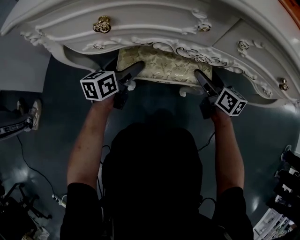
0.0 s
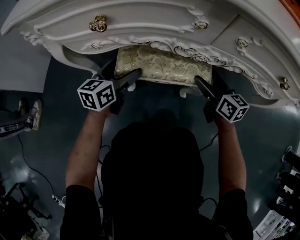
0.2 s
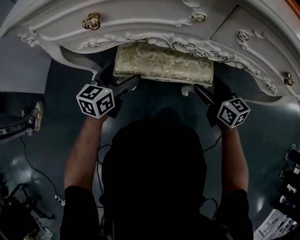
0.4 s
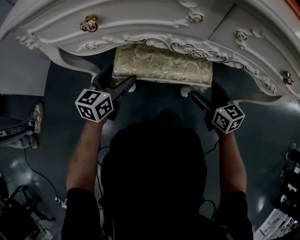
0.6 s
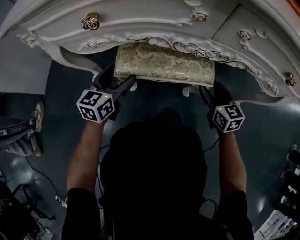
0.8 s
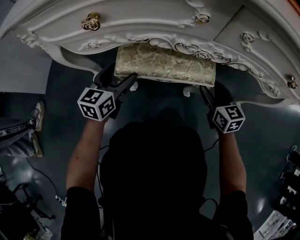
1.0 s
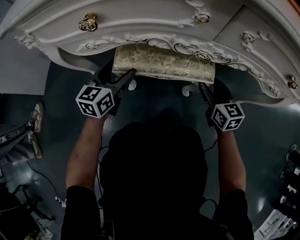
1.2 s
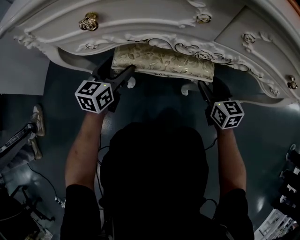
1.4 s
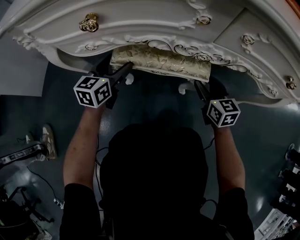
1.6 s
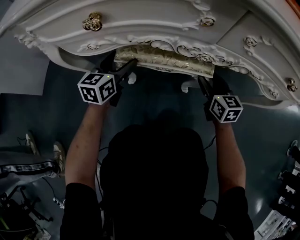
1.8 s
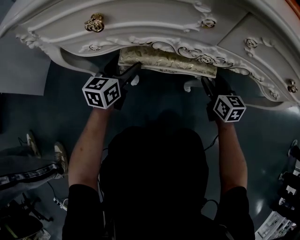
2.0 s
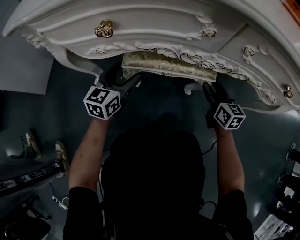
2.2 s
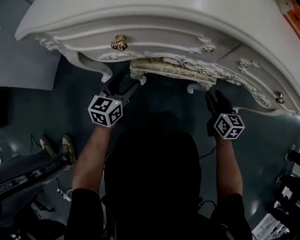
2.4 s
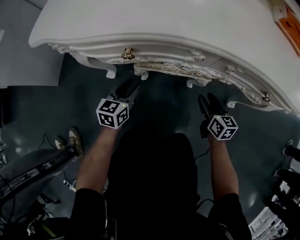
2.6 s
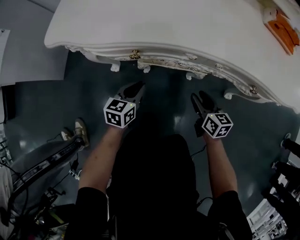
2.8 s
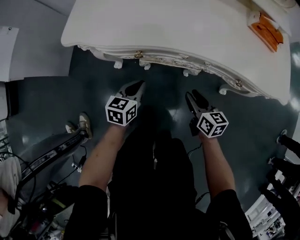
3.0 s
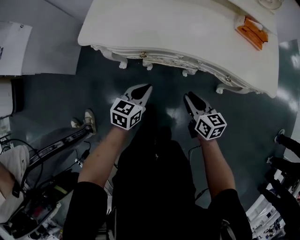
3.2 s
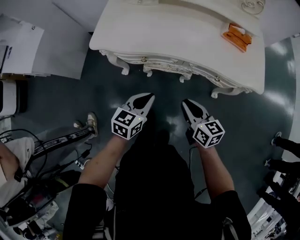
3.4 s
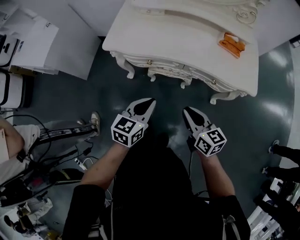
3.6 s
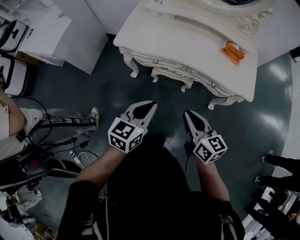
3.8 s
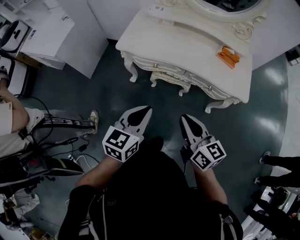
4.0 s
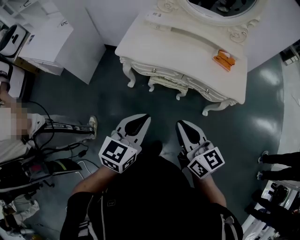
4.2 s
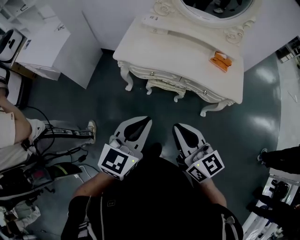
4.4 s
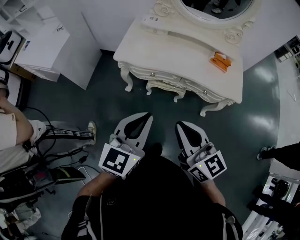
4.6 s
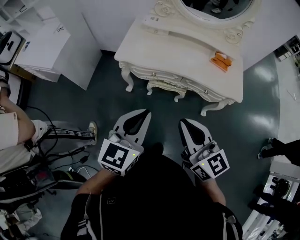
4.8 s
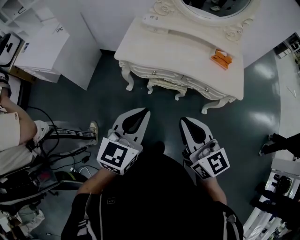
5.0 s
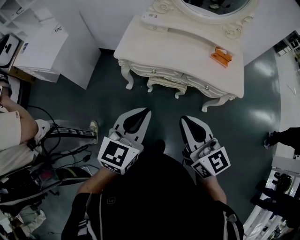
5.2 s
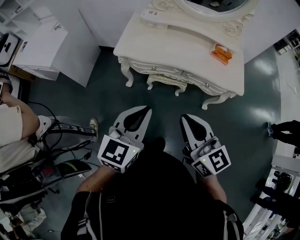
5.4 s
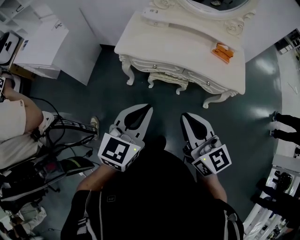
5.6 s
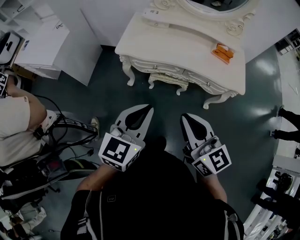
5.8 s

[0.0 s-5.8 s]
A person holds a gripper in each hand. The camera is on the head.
0.0 to 1.4 s: The left gripper changes its angle by approximately 20 degrees. The right gripper rotates roughly 30 degrees, and closes up.
1.4 to 2.8 s: The left gripper is displaced backward and upward by roughly 15 cm, and closes; the right gripper moves upward and backward, approximately 15 cm, and turns by roughly 20 degrees.
2.8 to 4.4 s: The two grippers go approximately 70 cm upward and backward. The left gripper swivels some 30 degrees. The right gripper rotates some 30 degrees, and closes up.
4.4 to 5.8 s: There are only small adjustments of the grippers.

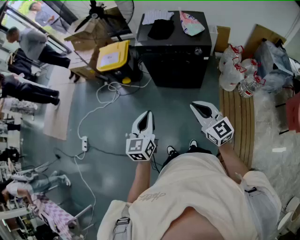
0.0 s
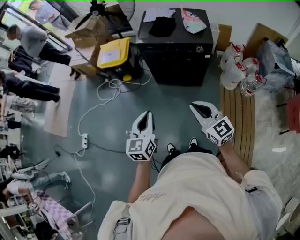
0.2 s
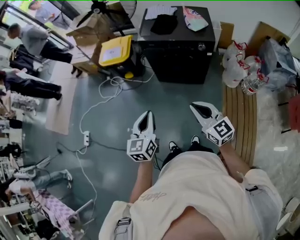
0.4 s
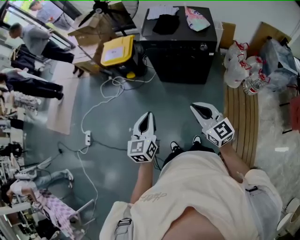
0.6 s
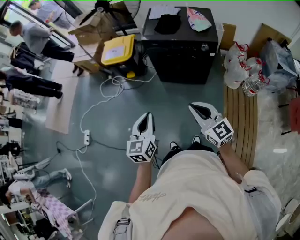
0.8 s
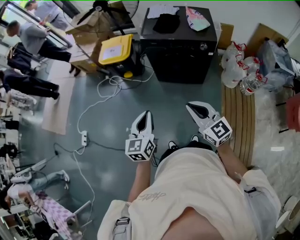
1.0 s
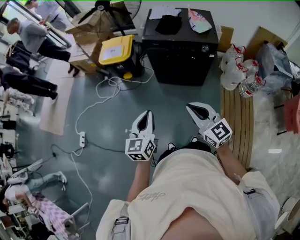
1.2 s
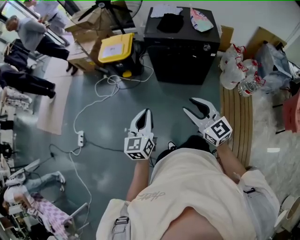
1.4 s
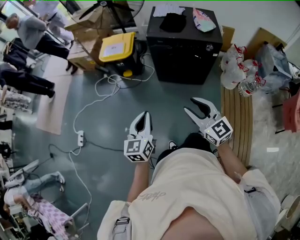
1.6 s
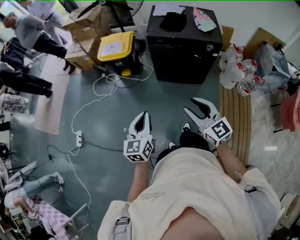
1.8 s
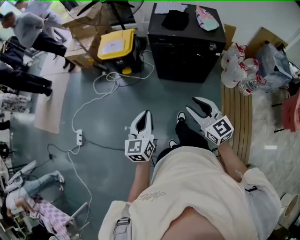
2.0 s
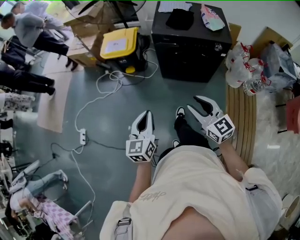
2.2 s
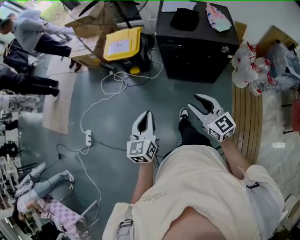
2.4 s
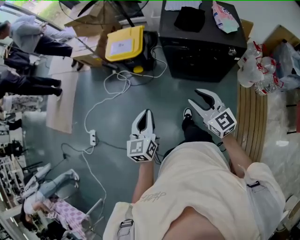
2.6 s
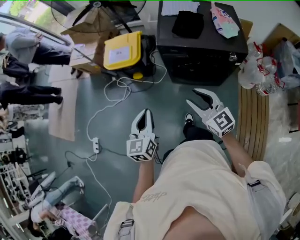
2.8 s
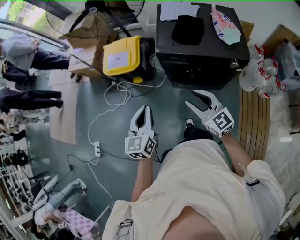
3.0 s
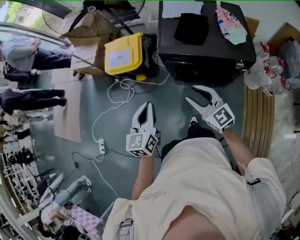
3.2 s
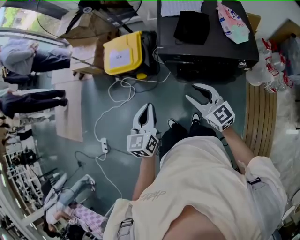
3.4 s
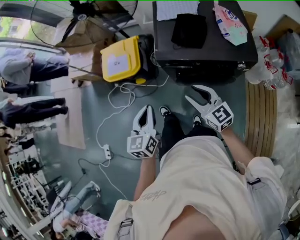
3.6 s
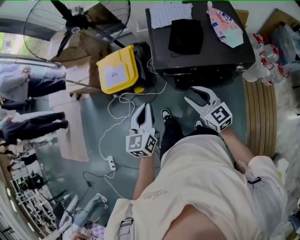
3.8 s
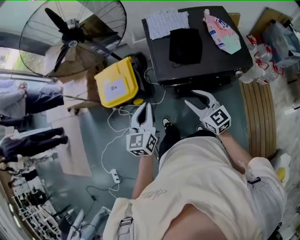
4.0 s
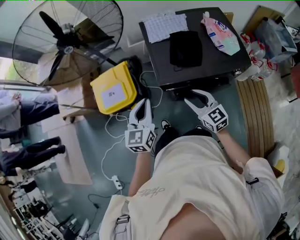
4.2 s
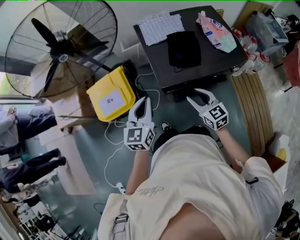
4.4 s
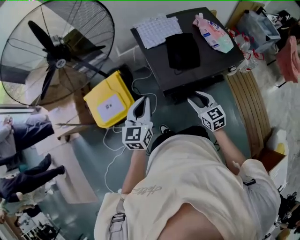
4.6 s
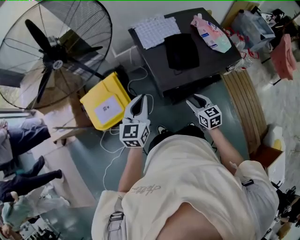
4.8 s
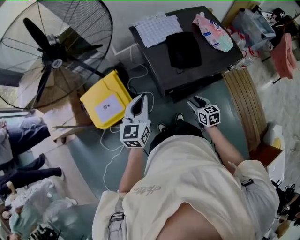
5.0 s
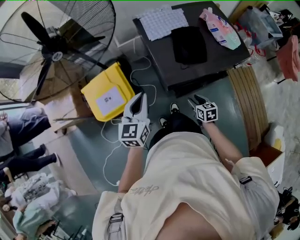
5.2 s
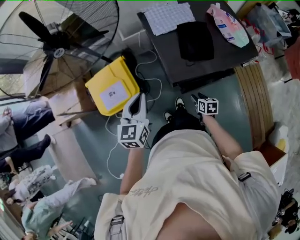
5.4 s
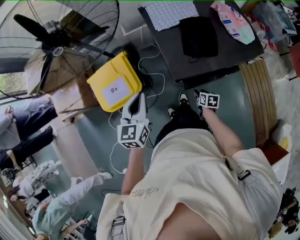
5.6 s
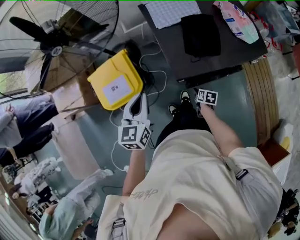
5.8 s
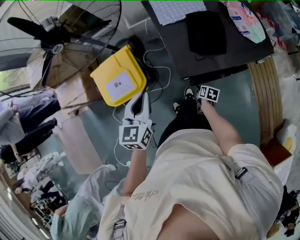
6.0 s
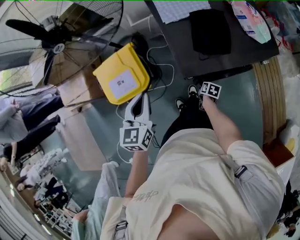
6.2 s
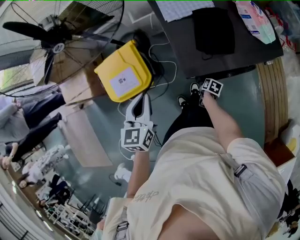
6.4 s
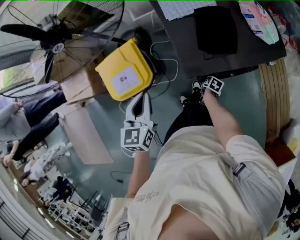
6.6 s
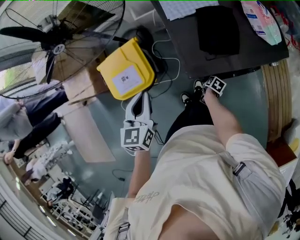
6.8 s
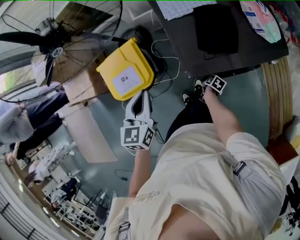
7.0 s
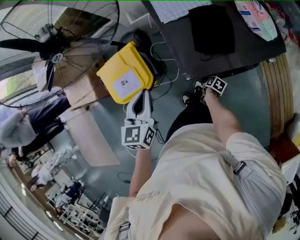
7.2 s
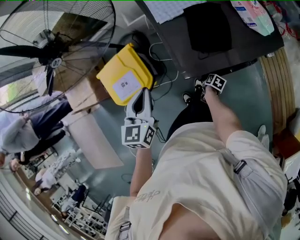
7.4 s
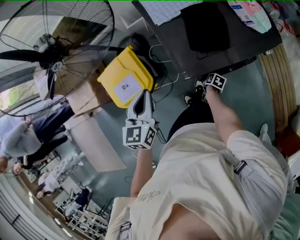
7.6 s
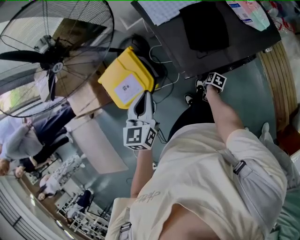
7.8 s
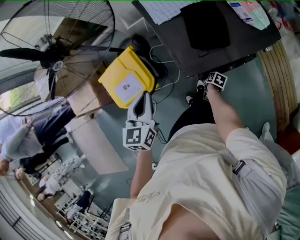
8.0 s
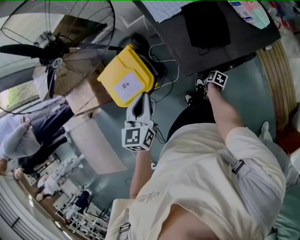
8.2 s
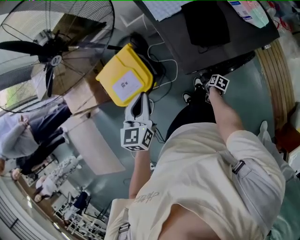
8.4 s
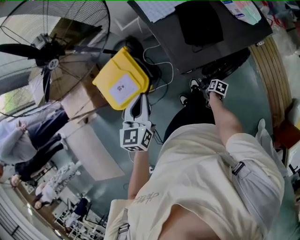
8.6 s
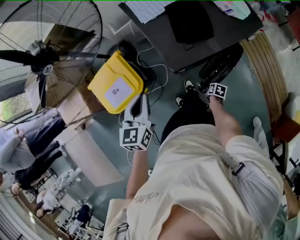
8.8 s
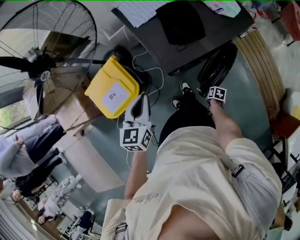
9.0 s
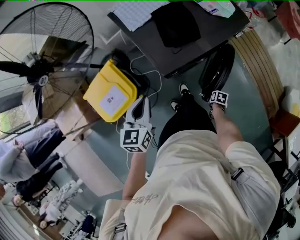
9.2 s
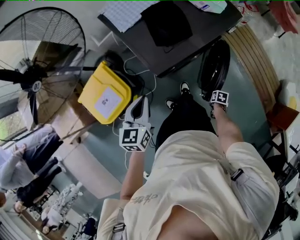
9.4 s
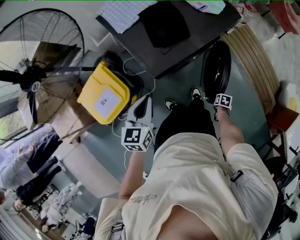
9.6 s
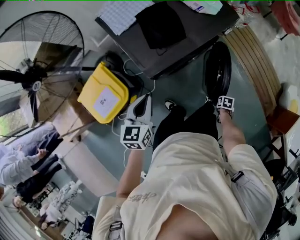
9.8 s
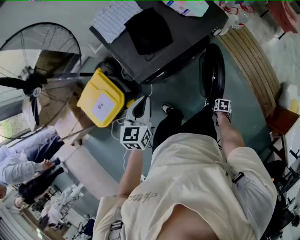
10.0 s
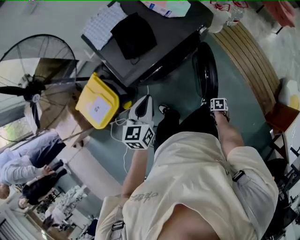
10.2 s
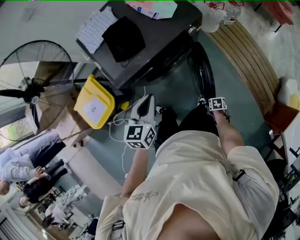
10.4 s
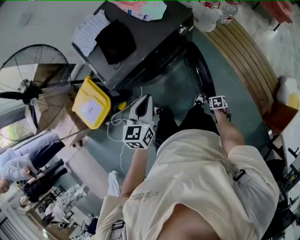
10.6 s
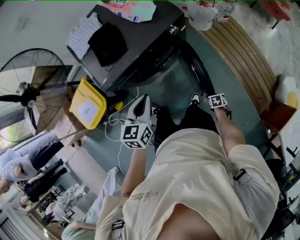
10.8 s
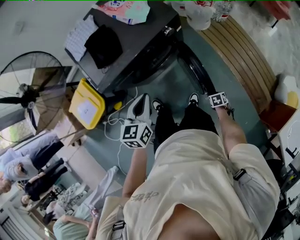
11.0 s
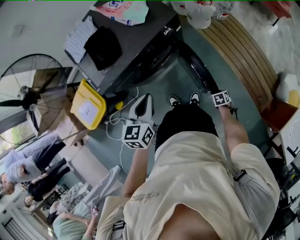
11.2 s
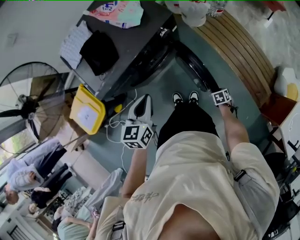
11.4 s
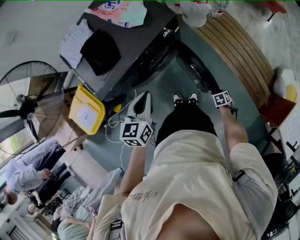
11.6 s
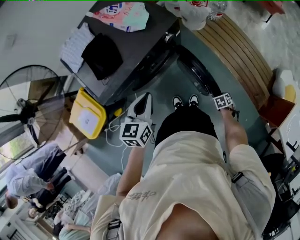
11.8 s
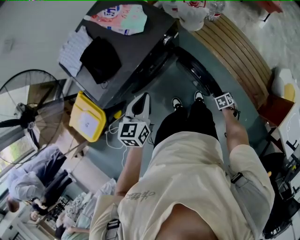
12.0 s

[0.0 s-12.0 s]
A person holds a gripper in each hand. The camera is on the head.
0.0 to 1.6 s: Both grippers move to the left, about 10 cm. The right gripper opens.
1.6 to 3.0 s: The grippers both shift forward by some 30 cm.
3.0 to 4.4 s: The right gripper ends up roughly 25 cm from where it was, and turns by some 30 degrees; the left gripper moves approximately 30 cm, and swivels approximately 30 degrees.
4.4 to 6.0 s: The left gripper is displaced to the left by some 10 cm, while the right gripper moves downward, roughly 30 cm, and angles its fingers downward, by some 40 degrees.
6.0 to 7.6 s: The right gripper changes place by roughly 5 cm.
7.6 to 9.0 s: The right gripper changes place by approximately 15 cm, and closes up. Meanwhile the left gripper changes place by some 5 cm.
9.0 to 10.4 s: The left gripper changes place by some 25 cm. The right gripper ends up some 25 cm from where it was, and swivels about 20 degrees.
10.4 to 12.0 s: The left gripper shifts by roughly 10 cm, while the right gripper ends up about 15 cm from where it was.

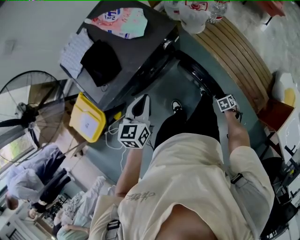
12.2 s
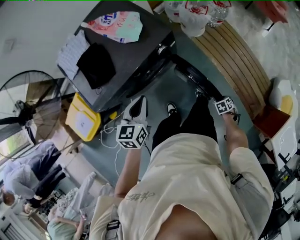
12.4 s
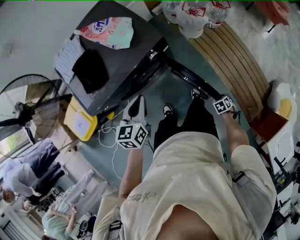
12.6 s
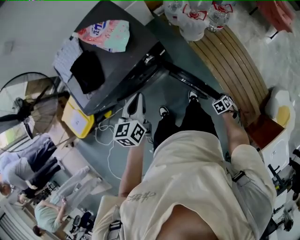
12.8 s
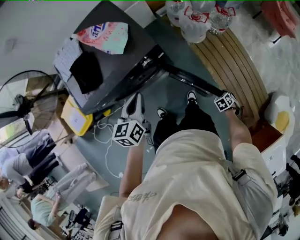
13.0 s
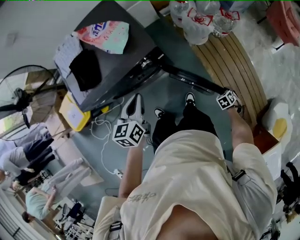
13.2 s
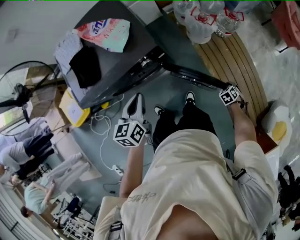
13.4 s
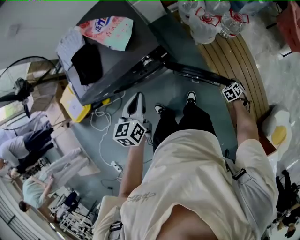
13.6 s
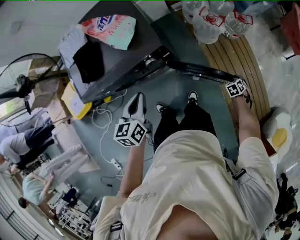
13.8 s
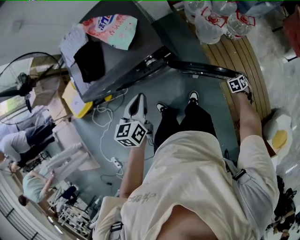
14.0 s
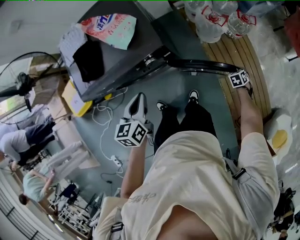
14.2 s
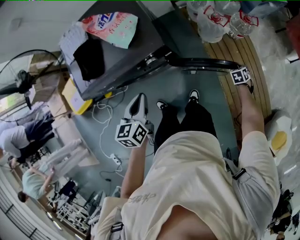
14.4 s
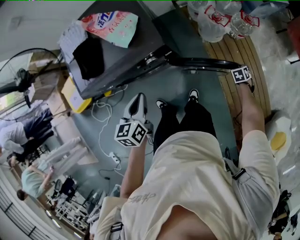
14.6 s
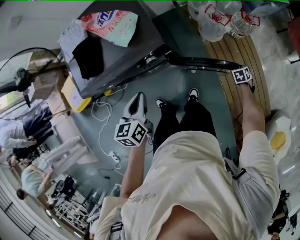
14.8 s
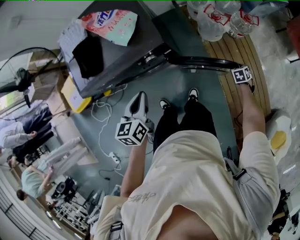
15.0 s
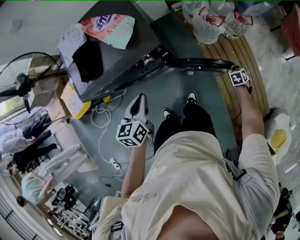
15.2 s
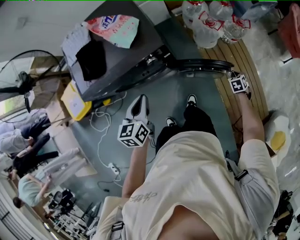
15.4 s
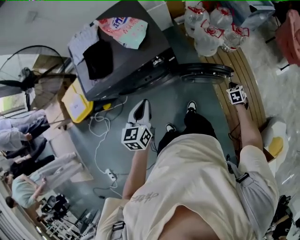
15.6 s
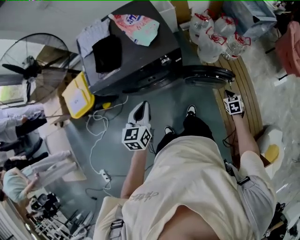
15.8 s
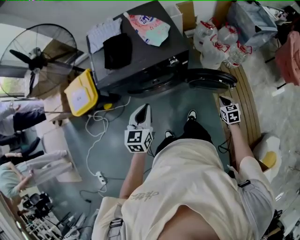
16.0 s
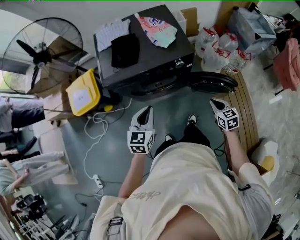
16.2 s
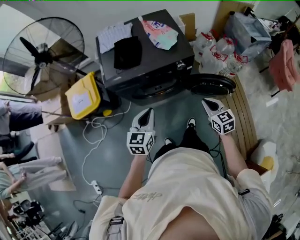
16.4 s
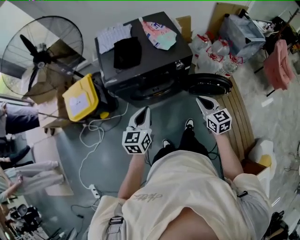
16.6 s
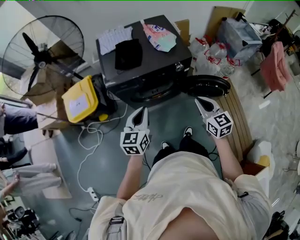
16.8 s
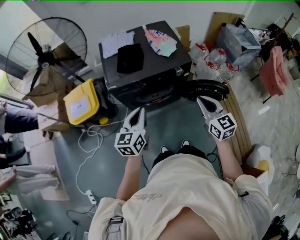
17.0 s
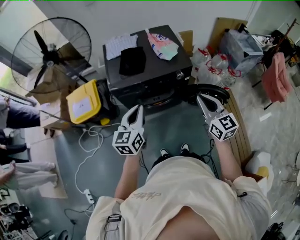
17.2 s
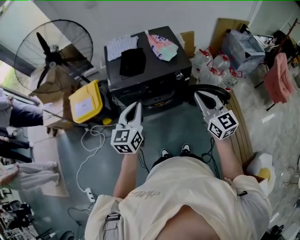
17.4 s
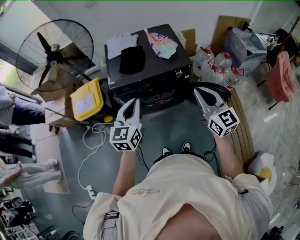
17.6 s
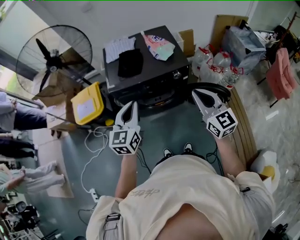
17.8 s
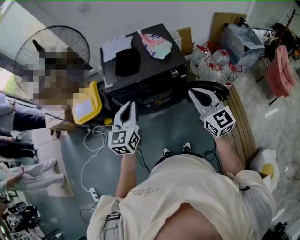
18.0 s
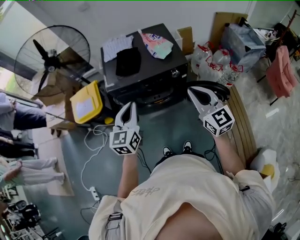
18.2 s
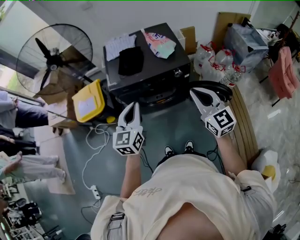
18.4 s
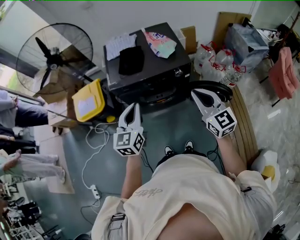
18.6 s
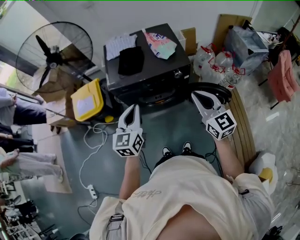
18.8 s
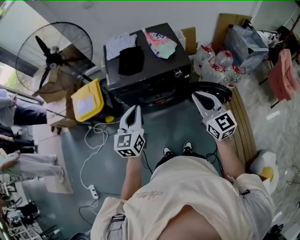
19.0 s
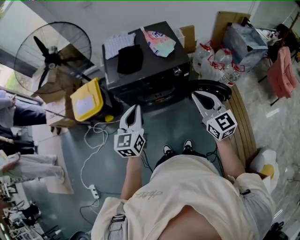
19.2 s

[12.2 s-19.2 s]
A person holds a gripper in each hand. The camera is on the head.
12.2 to 13.6 s: The left gripper ends up some 15 cm from where it was, and turns by approximately 30 degrees, while the right gripper moves about 30 cm, and changes its angle by approximately 30 degrees.
13.6 to 15.0 s: The right gripper is displaced forward by approximately 10 cm.
15.0 to 16.4 s: The left gripper travels backward and to the left by some 20 cm. Meanwhile the right gripper moves to the left, upward and backward, approximately 50 cm, and angles its fingers upward, by about 40 degrees.
16.4 to 17.8 s: The right gripper goes roughly 20 cm upward, and turns by some 30 degrees, while the left gripper shifts some 15 cm upward.
17.8 to 19.2 s: The grippers make only small movements.
